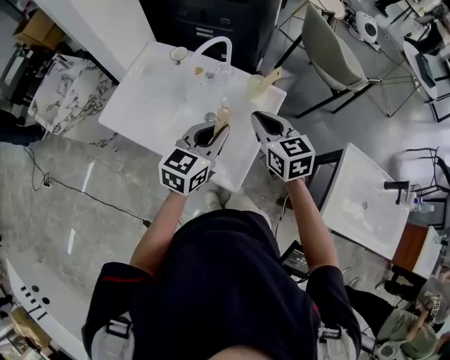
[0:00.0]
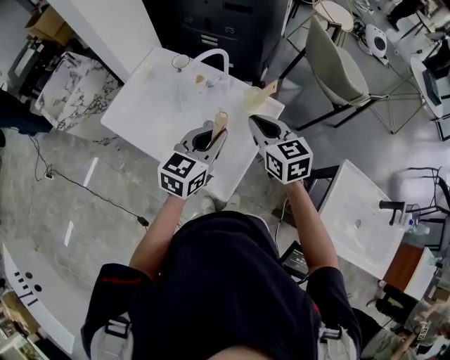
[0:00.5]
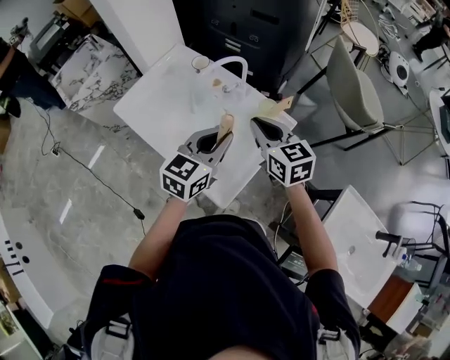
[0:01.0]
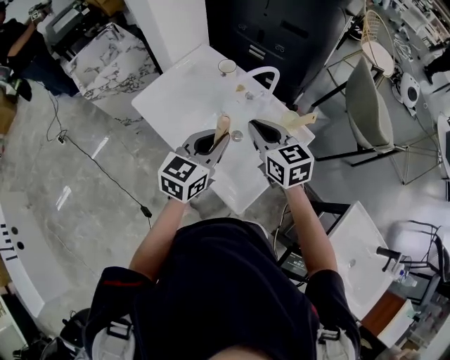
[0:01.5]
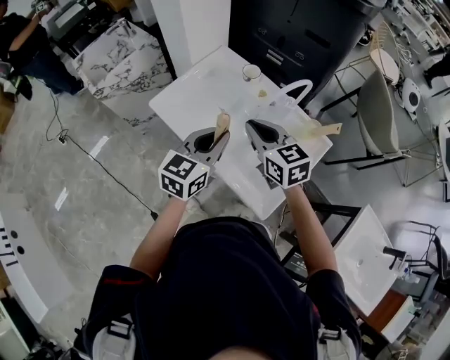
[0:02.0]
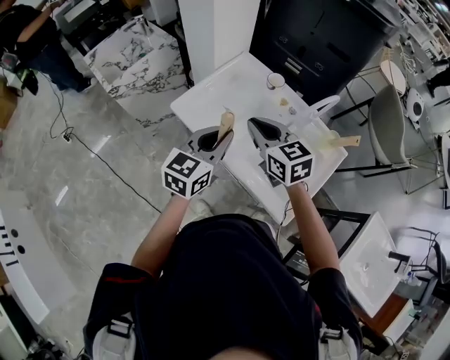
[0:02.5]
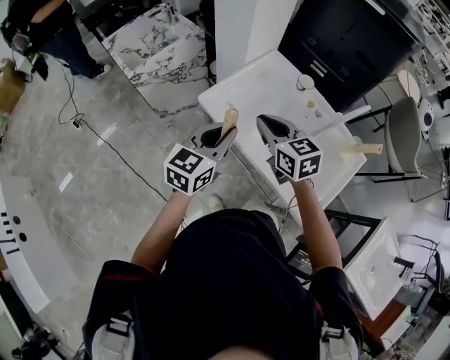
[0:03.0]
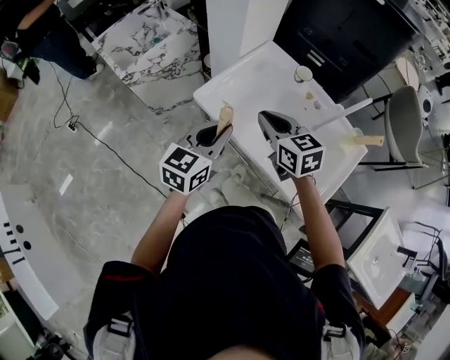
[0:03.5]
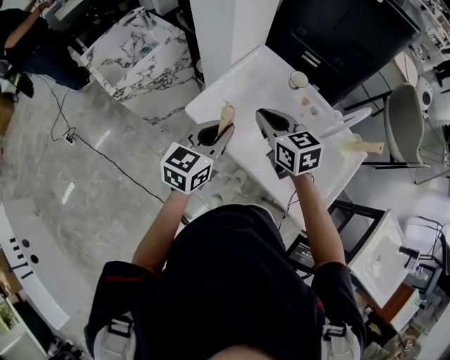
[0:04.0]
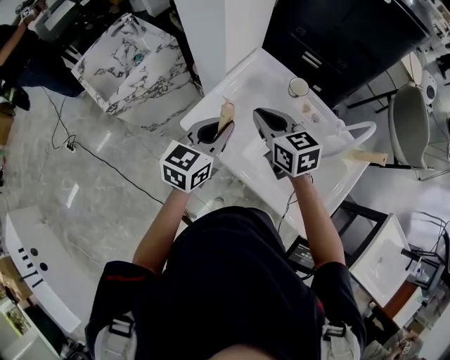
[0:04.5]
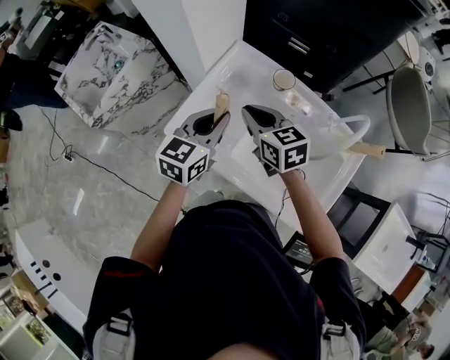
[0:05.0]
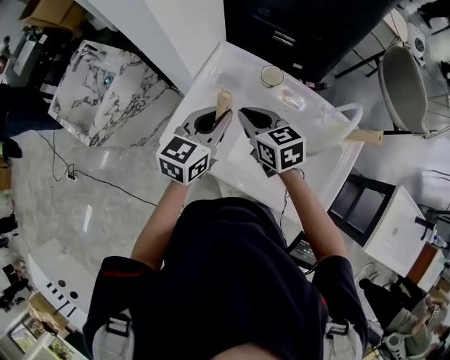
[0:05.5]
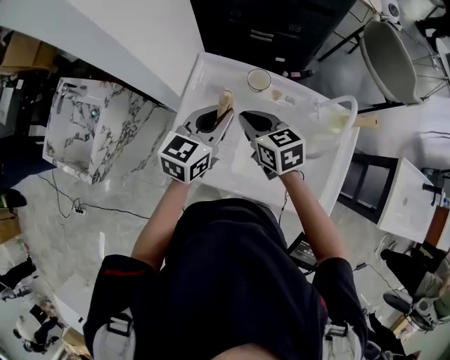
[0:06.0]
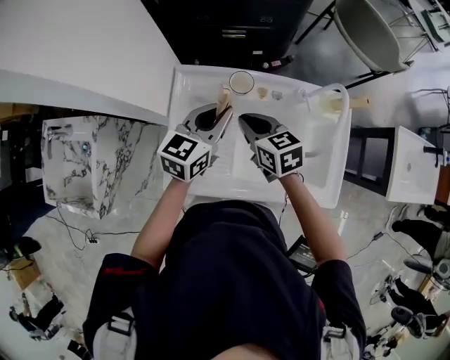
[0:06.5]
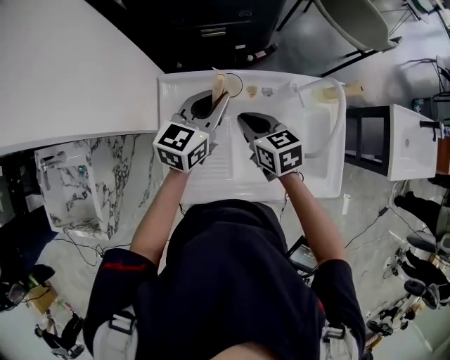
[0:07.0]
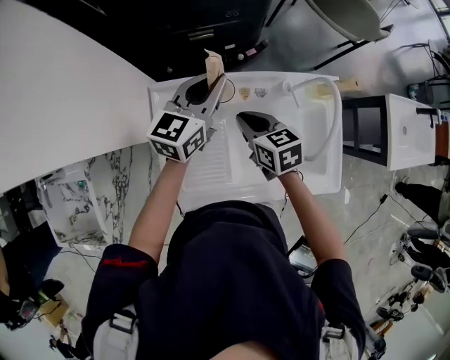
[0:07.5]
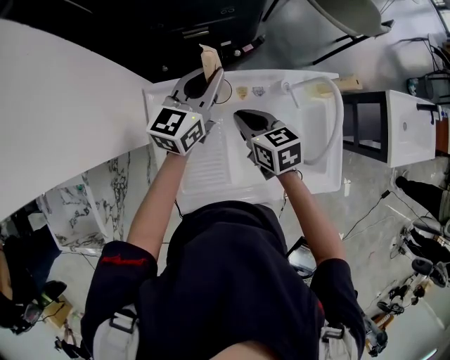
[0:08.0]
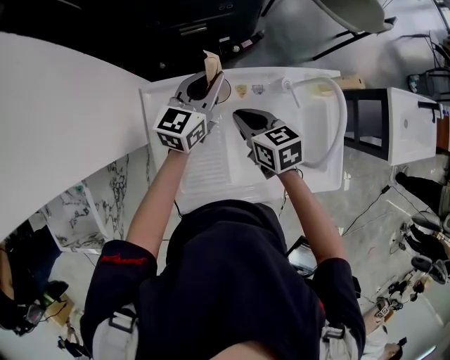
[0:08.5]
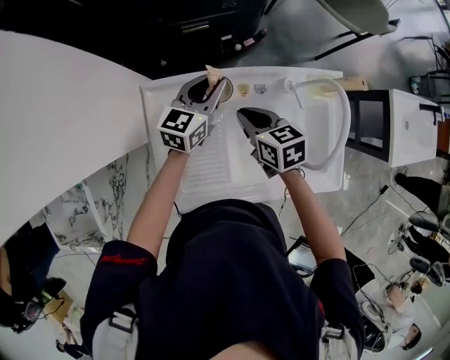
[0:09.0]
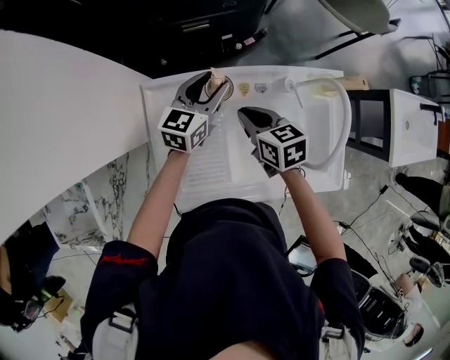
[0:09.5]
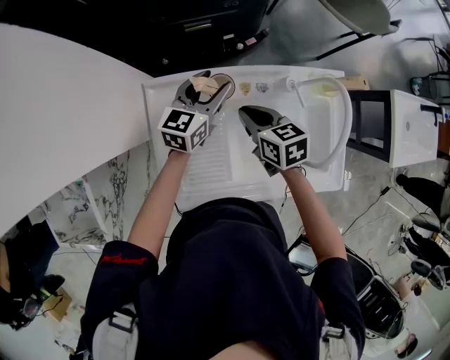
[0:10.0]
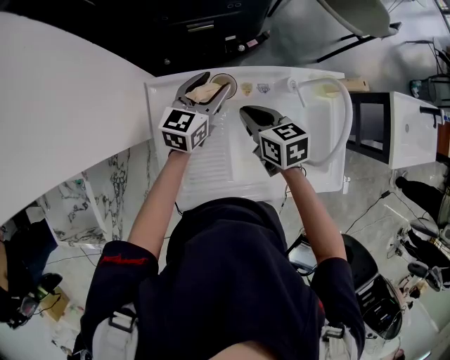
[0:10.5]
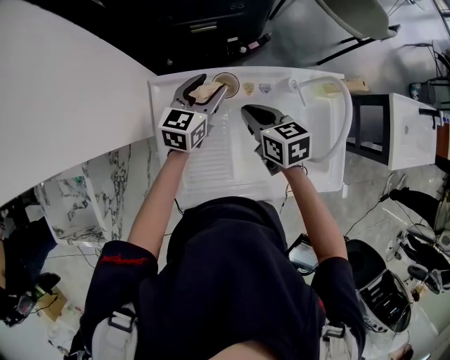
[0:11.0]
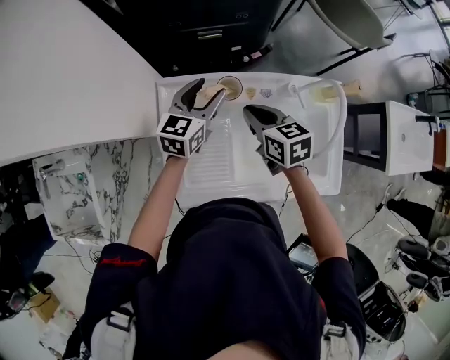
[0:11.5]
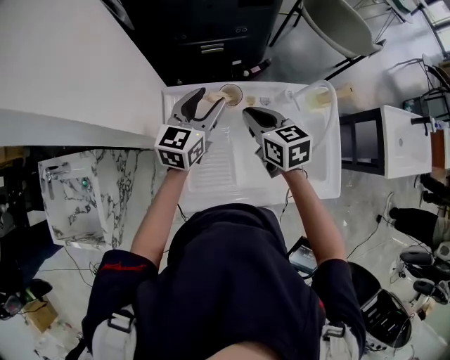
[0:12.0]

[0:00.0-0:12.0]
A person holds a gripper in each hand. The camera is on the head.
0:00.0 to 0:02.0: The two grippers go roughly 20 cm to the left. The right gripper turns by about 20 degrees.
0:02.0 to 0:04.0: Both grippers travel together to the left and forward, approximately 20 cm.
0:04.0 to 0:06.0: The left gripper travels forward and to the right by approximately 20 cm, and swivels some 20 degrees; the right gripper travels forward, downward and to the right by some 15 cm, and turns by approximately 20 degrees.
0:06.0 to 0:08.0: The left gripper shifts approximately 15 cm forward, and swivels some 20 degrees. Meanwhile the right gripper moves forward and to the right, approximately 10 cm, and rotates some 30 degrees.
0:08.0 to 0:10.0: The left gripper moves downward, approximately 10 cm, and opens.
0:10.0 to 0:12.0: The right gripper travels upward by some 10 cm. The left gripper travels upward, backward and to the left by about 10 cm.

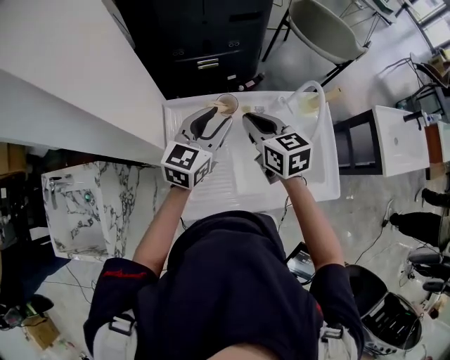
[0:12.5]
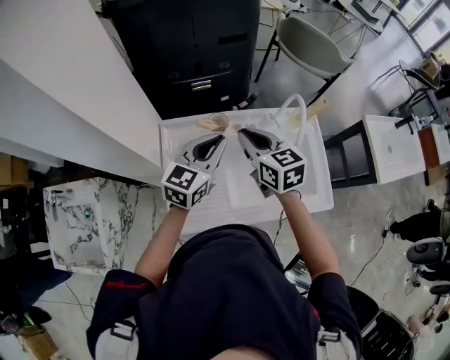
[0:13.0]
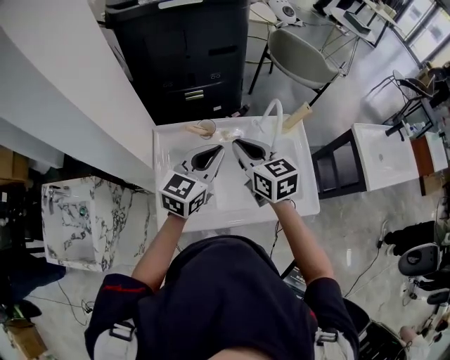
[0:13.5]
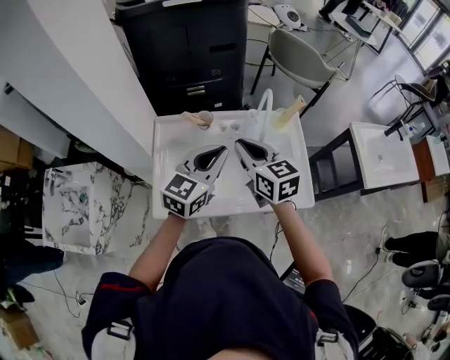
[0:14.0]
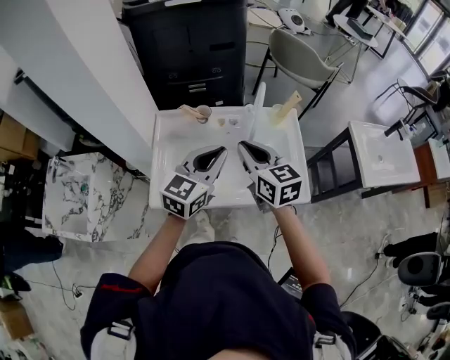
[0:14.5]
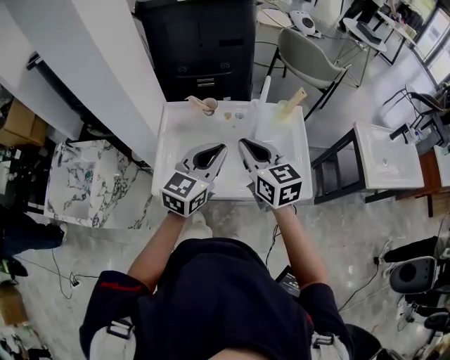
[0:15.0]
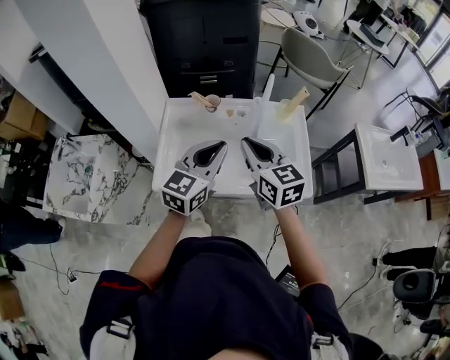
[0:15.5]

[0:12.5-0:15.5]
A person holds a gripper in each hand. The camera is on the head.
0:12.5 to 0:14.0: The two grippers go roughly 15 cm backward, to the right and upward. The left gripper closes its fingers.
0:14.0 to 0:15.5: Both grippers move backward, about 10 cm.

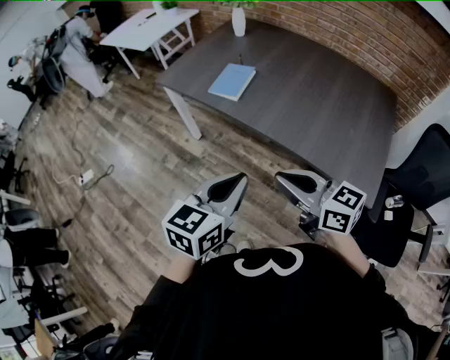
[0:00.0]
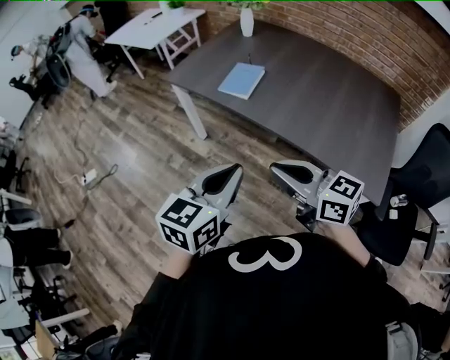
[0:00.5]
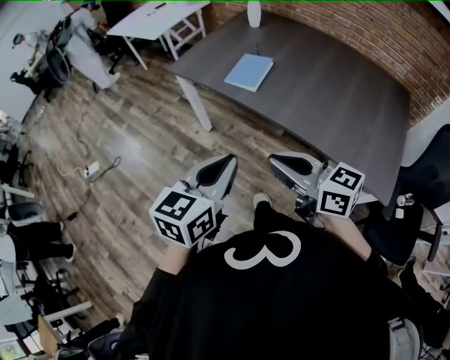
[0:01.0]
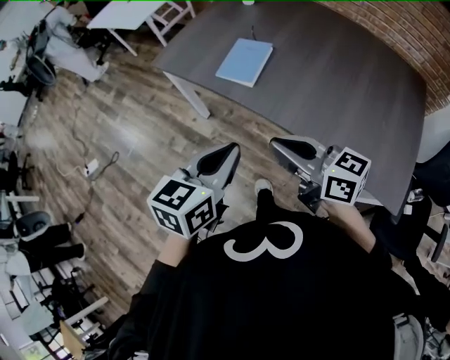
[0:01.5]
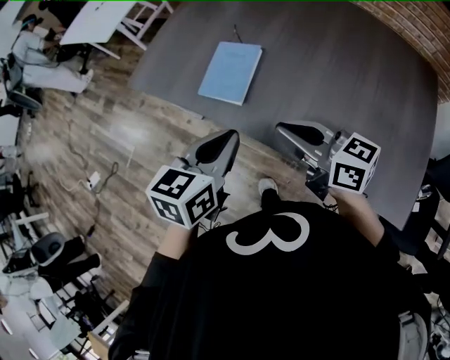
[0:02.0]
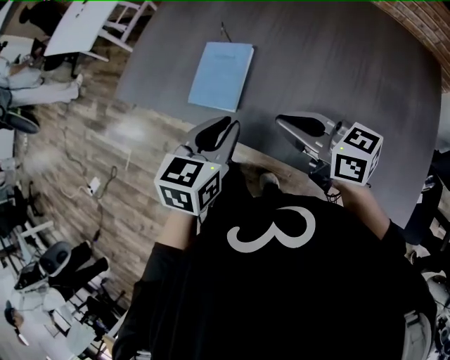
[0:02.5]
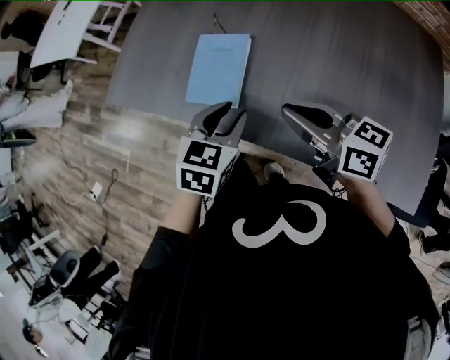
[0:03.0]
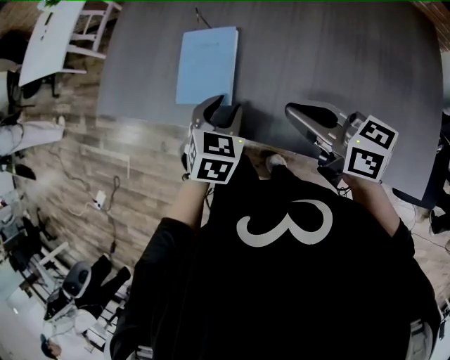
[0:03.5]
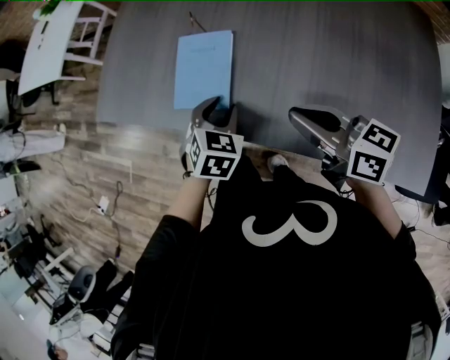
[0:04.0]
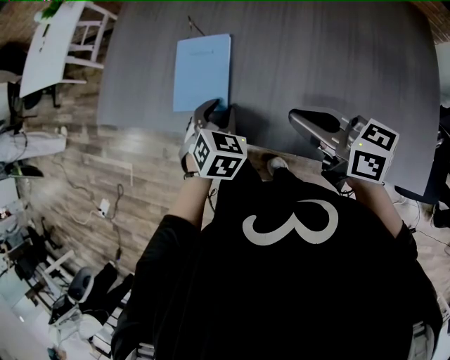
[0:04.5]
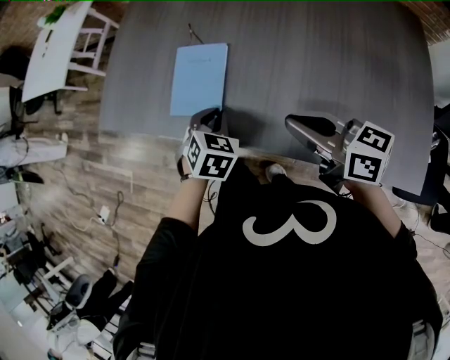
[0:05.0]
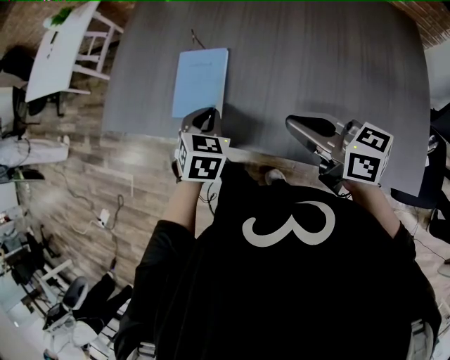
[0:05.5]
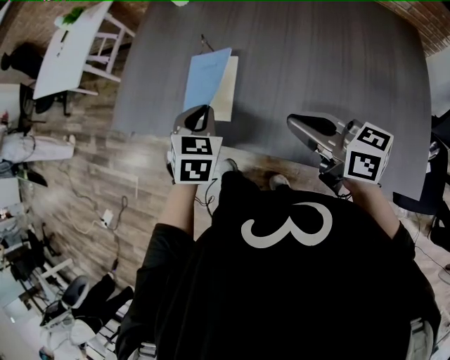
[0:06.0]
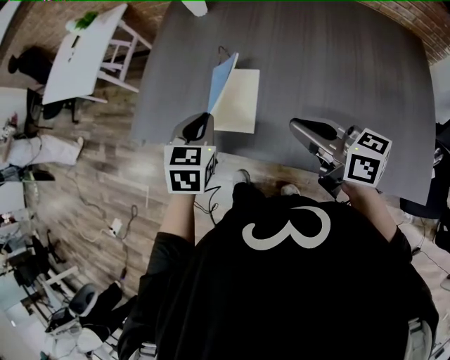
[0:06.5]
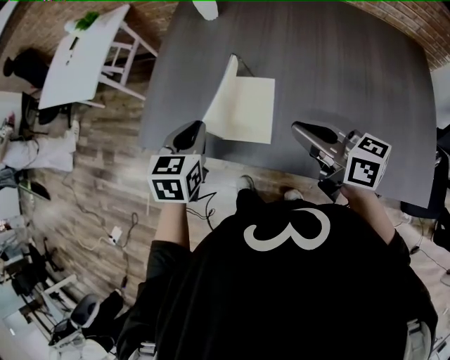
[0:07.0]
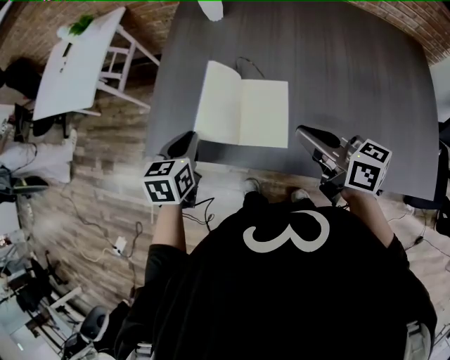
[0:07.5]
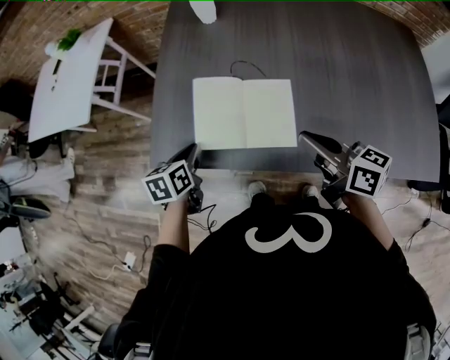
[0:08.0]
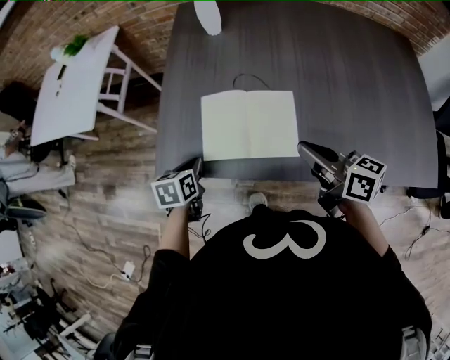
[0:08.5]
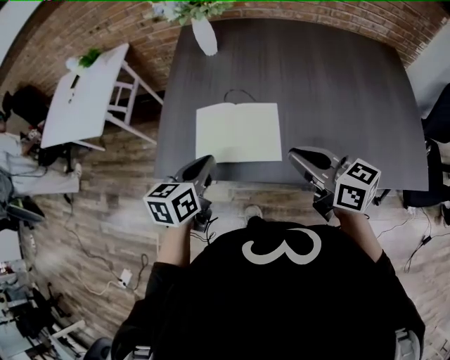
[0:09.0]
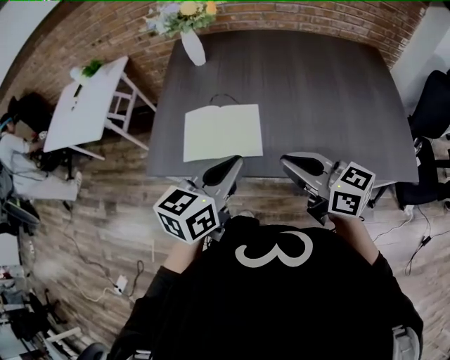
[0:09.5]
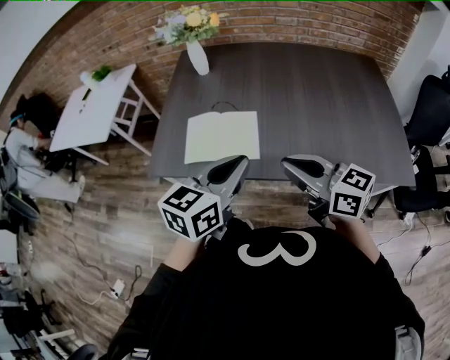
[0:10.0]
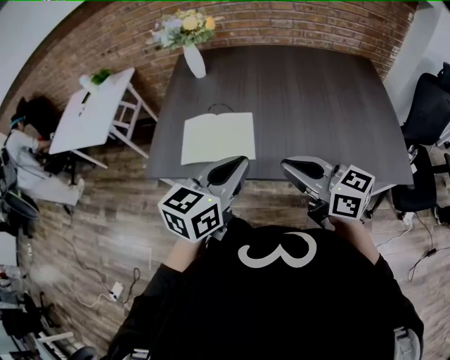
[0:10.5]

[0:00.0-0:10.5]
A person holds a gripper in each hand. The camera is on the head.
0:00.0 to 0:02.0: The two grippers go about 30 cm forward.
0:02.0 to 0:04.0: The left gripper heads downward and forward, covering about 20 cm, turns by roughly 40 degrees, and opens up; the right gripper ends up approximately 5 cm from where it was.
0:04.0 to 0:06.5: The left gripper is displaced upward, to the left and forward by some 15 cm, and closes up. Meanwhile the right gripper goes roughly 5 cm upward.
0:06.5 to 0:08.5: The right gripper goes approximately 10 cm to the left and forward, while the left gripper travels to the left and downward by approximately 25 cm, and changes its angle by roughly 30 degrees.
0:08.5 to 0:10.5: The right gripper is displaced backward, upward and to the right by approximately 15 cm, and swivels roughly 20 degrees. Meanwhile the left gripper is displaced upward, to the right and backward by approximately 40 cm, and points its fingers roughly 40 degrees further upward.

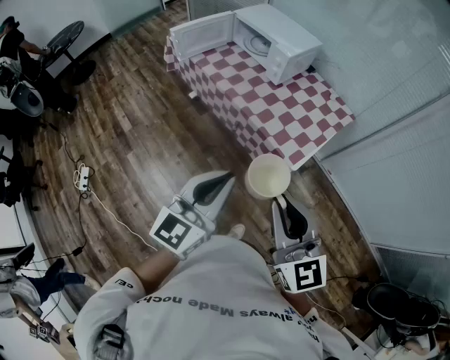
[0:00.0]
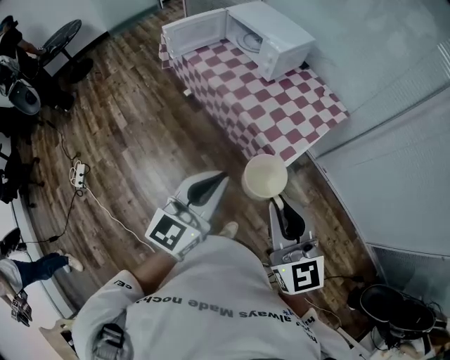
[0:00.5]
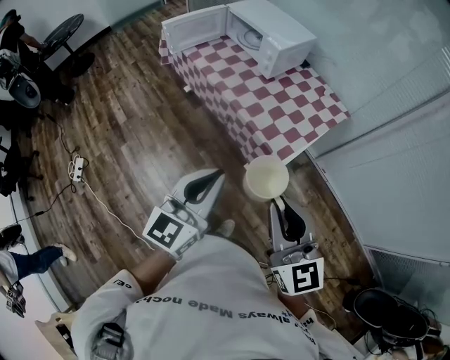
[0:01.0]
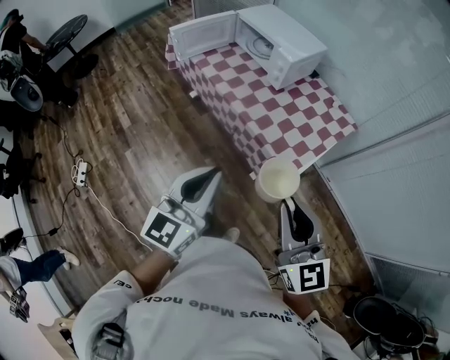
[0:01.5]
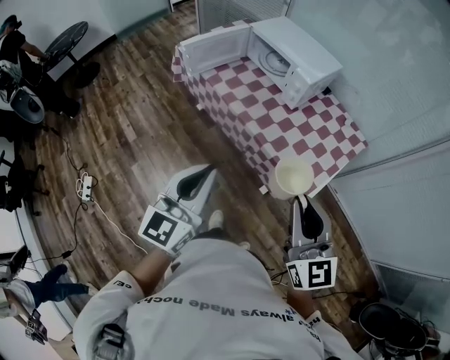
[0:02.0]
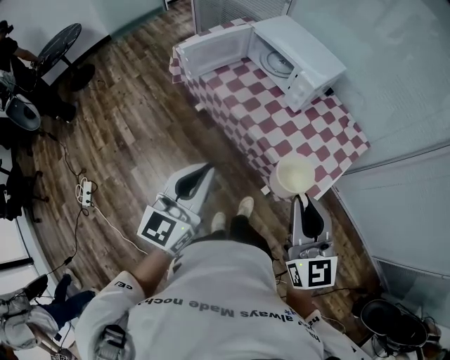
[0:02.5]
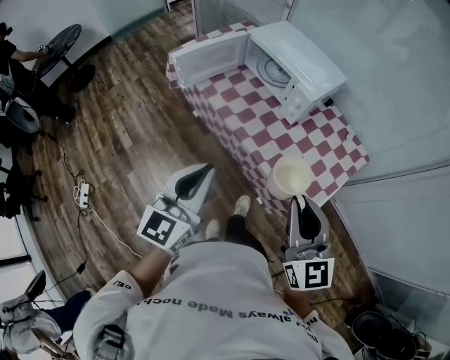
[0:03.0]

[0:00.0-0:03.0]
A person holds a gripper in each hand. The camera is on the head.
0:00.0 to 0:01.5: The grippers both shift forward by roughly 5 cm.
0:01.5 to 0:03.0: The left gripper is displaced forward and to the left by approximately 25 cm. Meanwhile the right gripper travels forward by some 20 cm.
